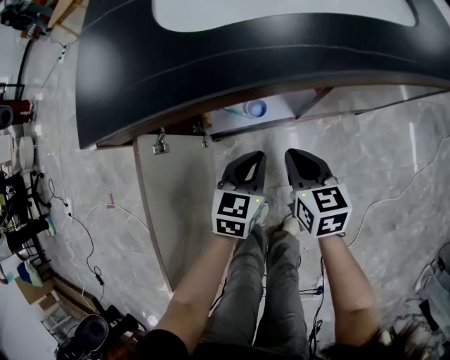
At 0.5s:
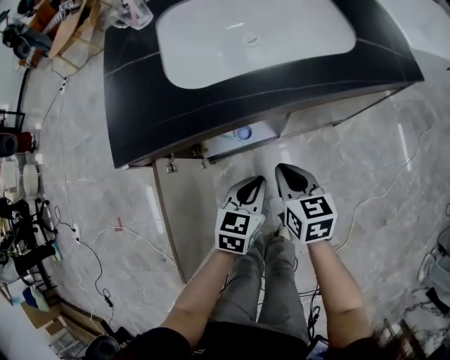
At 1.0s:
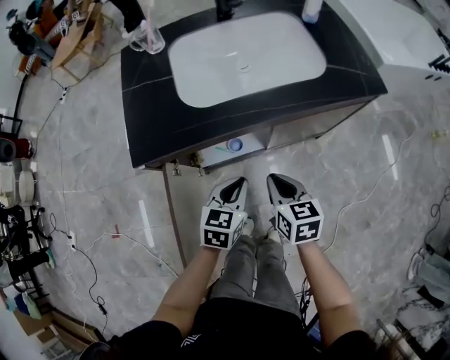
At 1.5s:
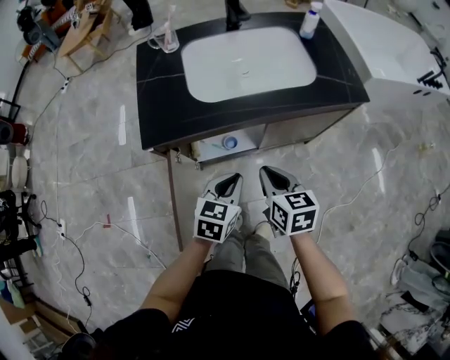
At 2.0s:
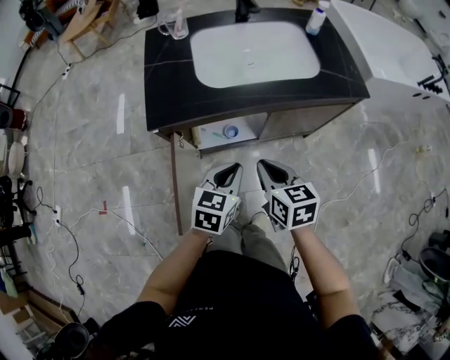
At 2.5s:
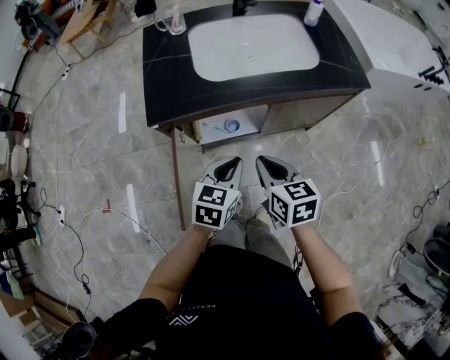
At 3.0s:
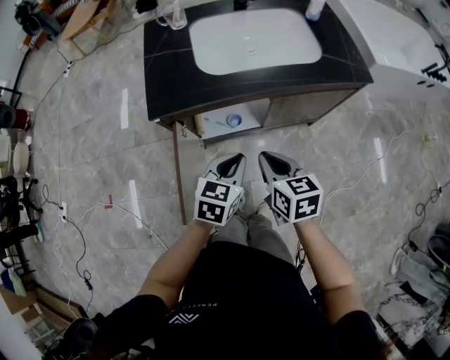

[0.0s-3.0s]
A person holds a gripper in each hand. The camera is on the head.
0.0s to 1.5s: Both grippers move upward, roughly 25 cm.
1.5s to 3.0s: The right gripper shifts by approximately 5 cm.

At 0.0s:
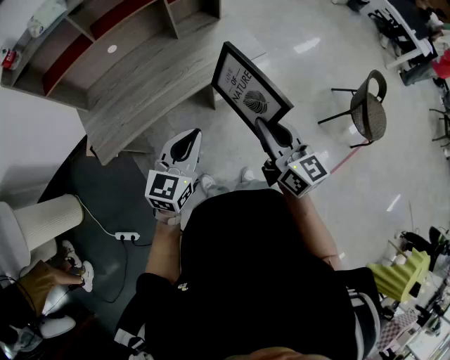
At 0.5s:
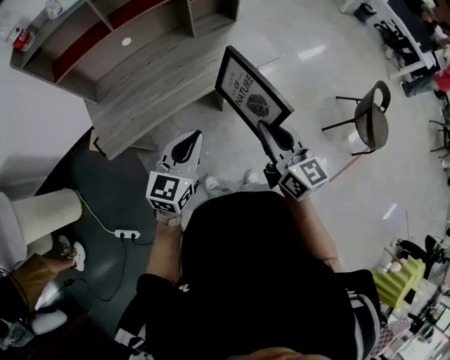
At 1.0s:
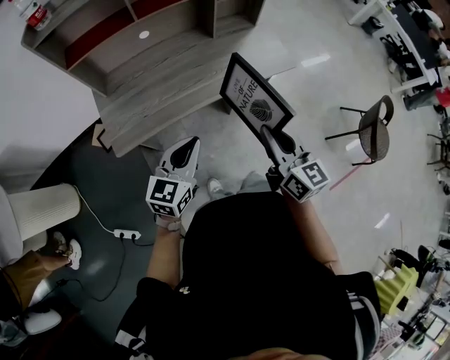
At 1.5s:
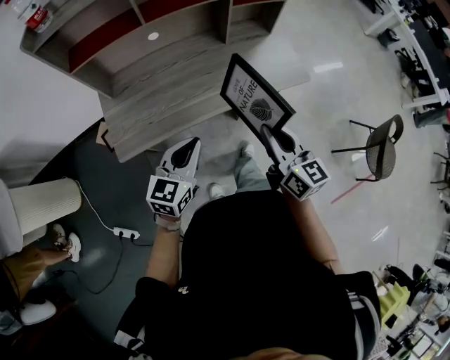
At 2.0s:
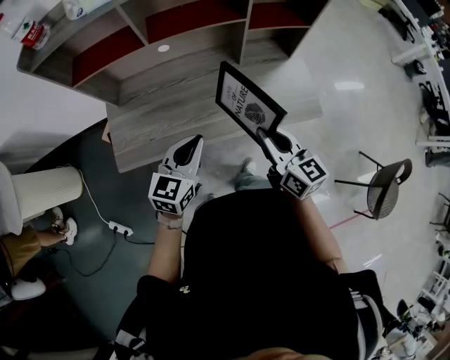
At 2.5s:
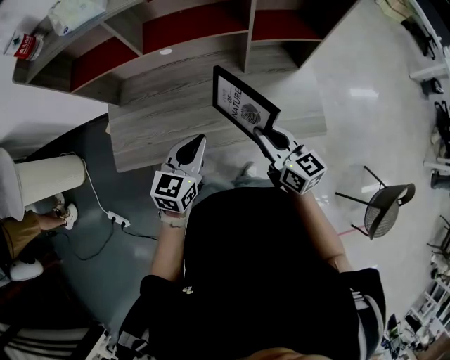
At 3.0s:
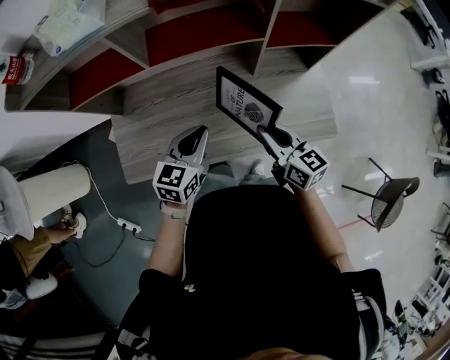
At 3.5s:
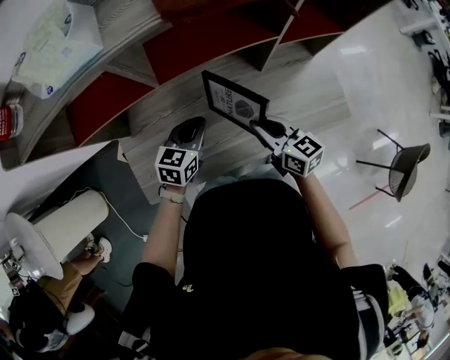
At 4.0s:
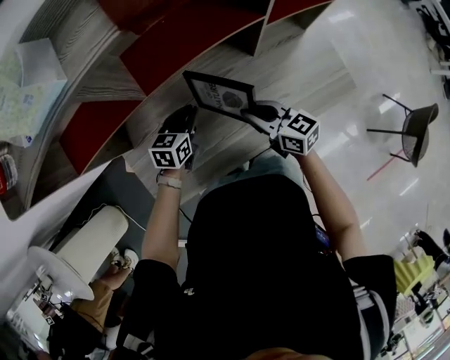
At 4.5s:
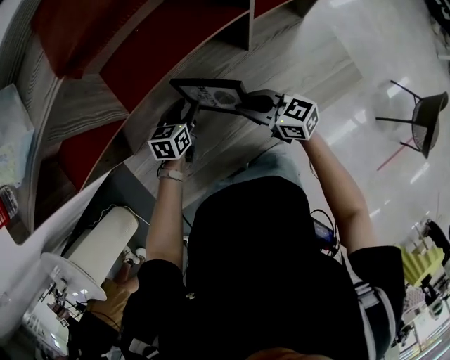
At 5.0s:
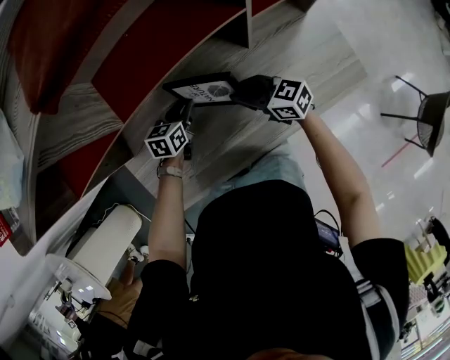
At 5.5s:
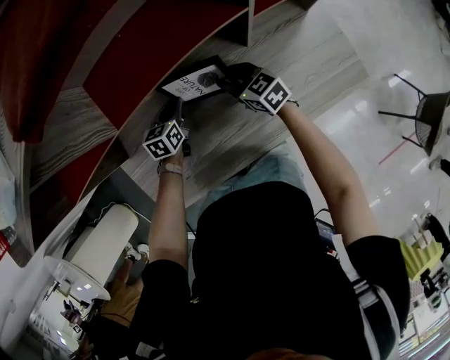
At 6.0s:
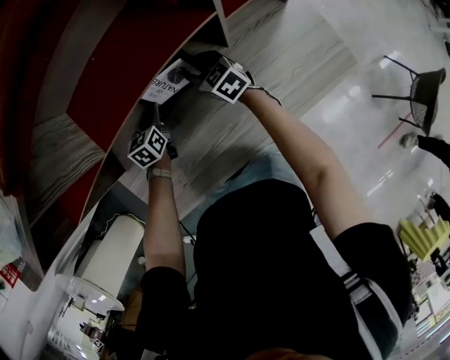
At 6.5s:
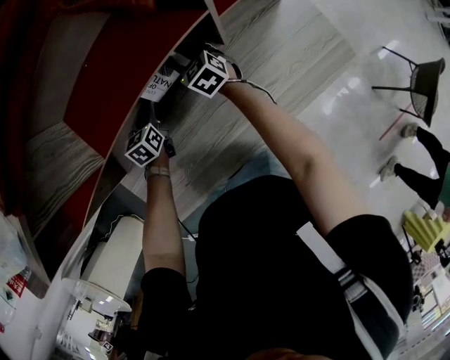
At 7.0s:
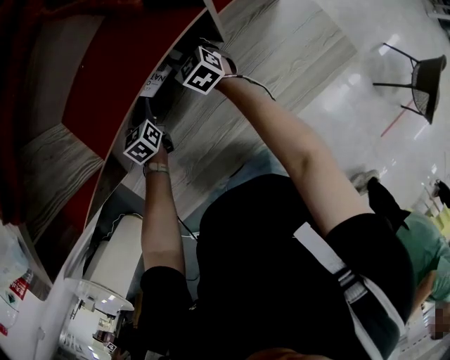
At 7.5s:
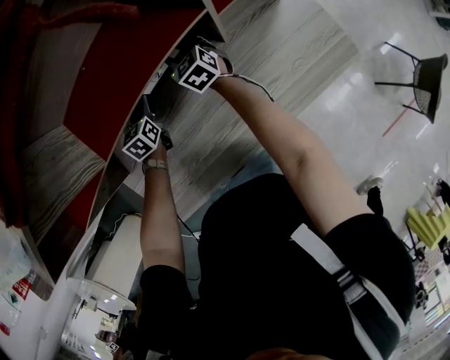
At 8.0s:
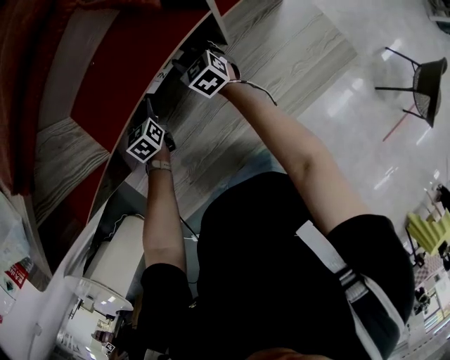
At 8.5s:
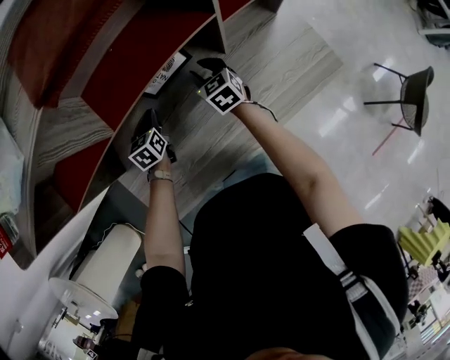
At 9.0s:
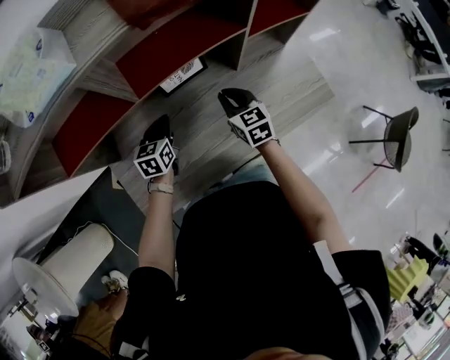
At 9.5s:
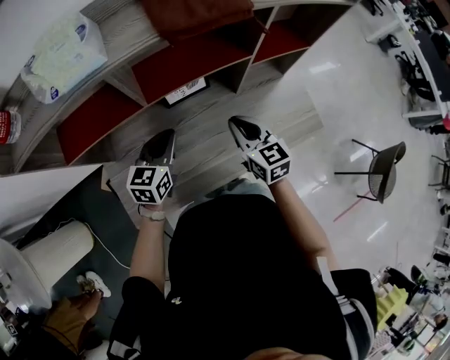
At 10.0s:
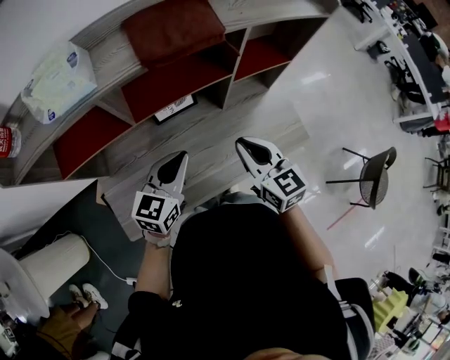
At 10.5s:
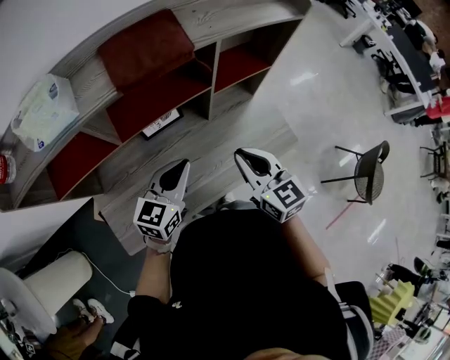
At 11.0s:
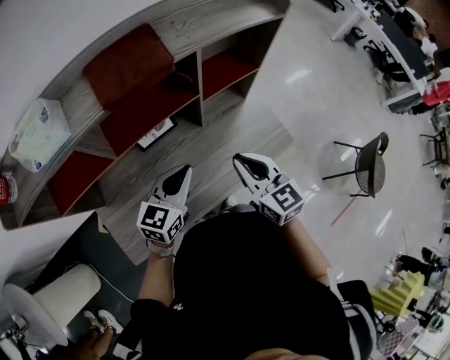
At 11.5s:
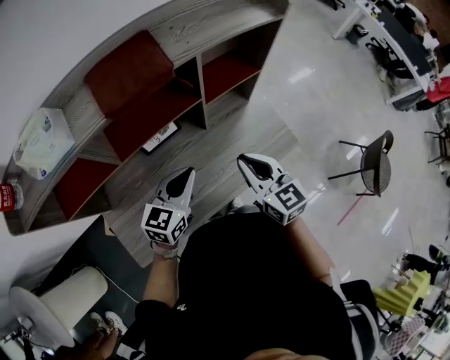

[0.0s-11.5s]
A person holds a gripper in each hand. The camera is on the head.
0.0s to 2.0s: The two grippers go some 25 cm forward and to the left. The right gripper swivels roughly 20 degrees, while the left gripper changes its angle by approximately 20 degrees.
2.0s to 4.0s: The right gripper travels forward, downward and to the left by about 25 cm, while the left gripper goes roughly 30 cm forward and downward, and changes its angle by some 20 degrees.
4.0s to 6.0s: The right gripper shifts some 25 cm forward and downward, turns by approximately 30 degrees, and opens. The left gripper travels downward and forward by about 15 cm, and opens and closes again.
6.0s to 7.5s: The right gripper heads forward, covering roughly 5 cm.
7.5s to 9.5s: The right gripper travels backward and upward by approximately 35 cm, and closes up. Meanwhile the left gripper is displaced upward and backward by approximately 30 cm, and turns by roughly 20 degrees.
9.5s to 11.5s: The grippers both shift to the right and upward by approximately 15 cm.

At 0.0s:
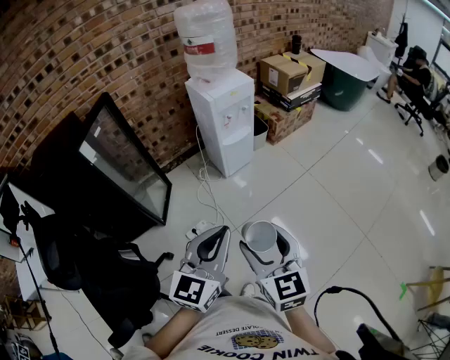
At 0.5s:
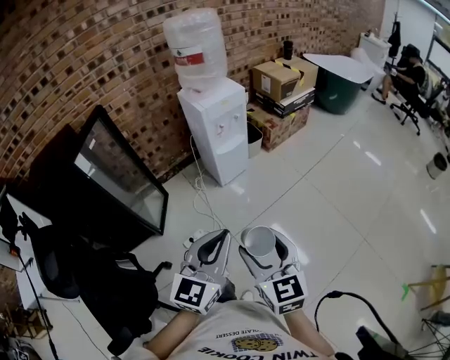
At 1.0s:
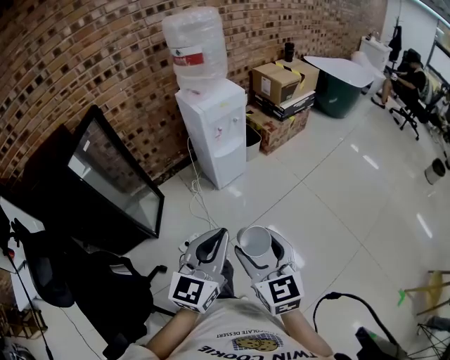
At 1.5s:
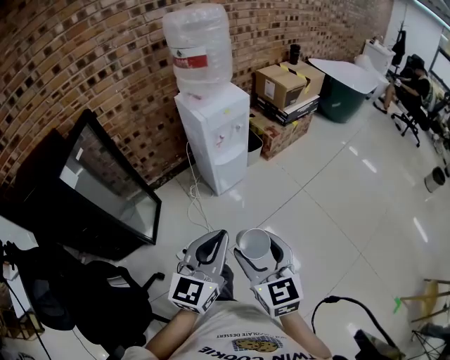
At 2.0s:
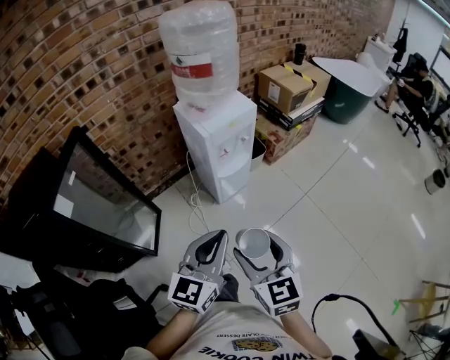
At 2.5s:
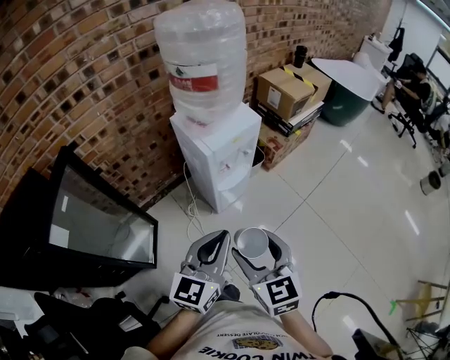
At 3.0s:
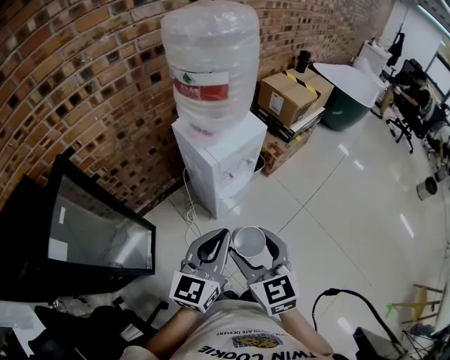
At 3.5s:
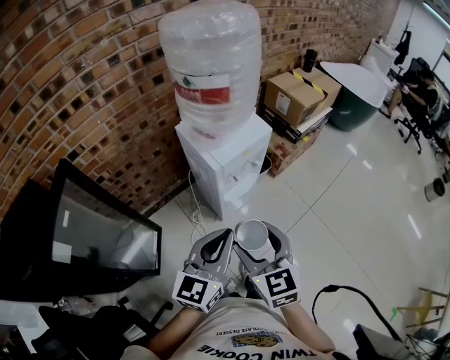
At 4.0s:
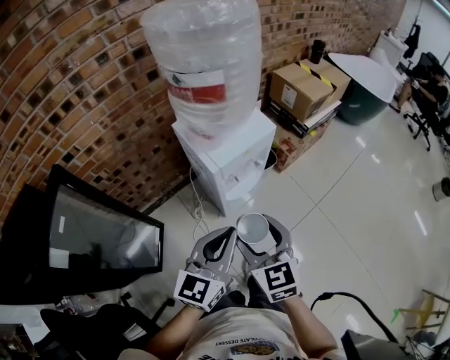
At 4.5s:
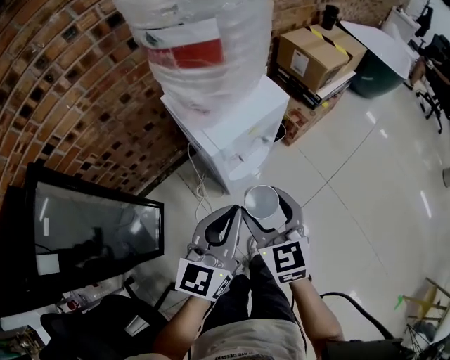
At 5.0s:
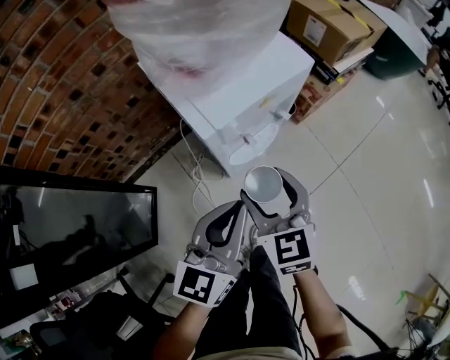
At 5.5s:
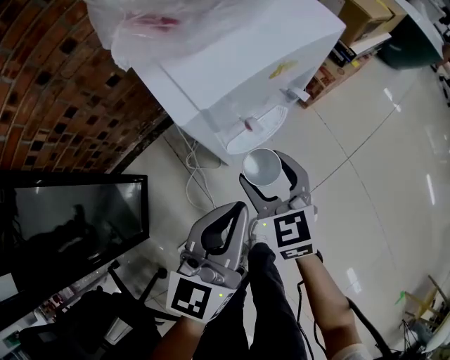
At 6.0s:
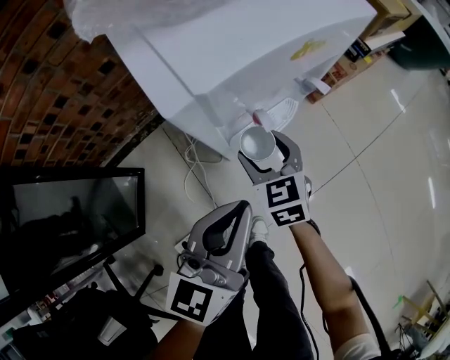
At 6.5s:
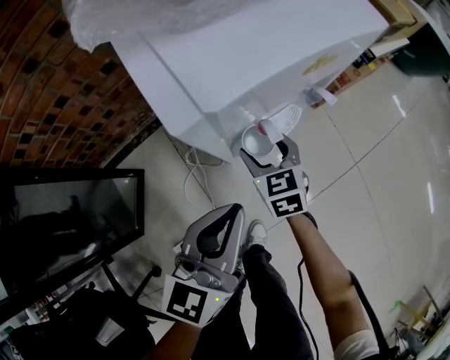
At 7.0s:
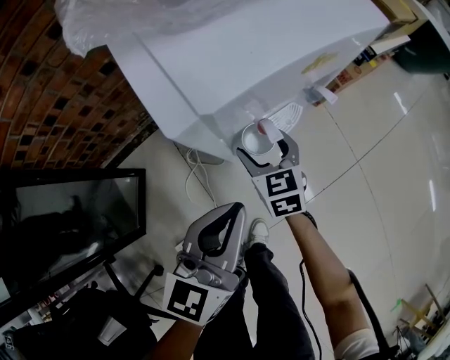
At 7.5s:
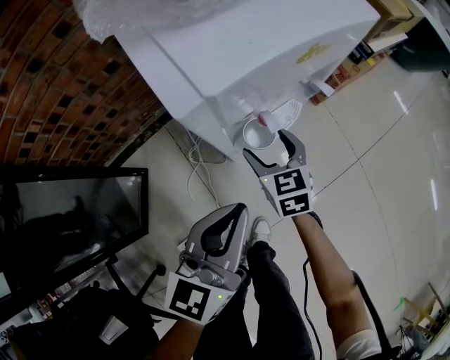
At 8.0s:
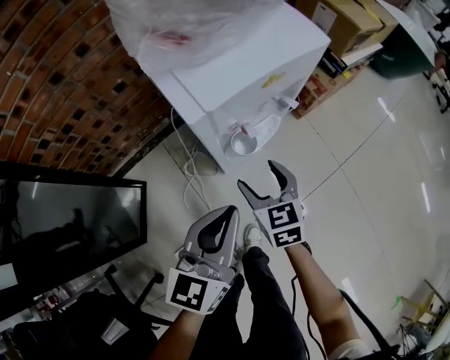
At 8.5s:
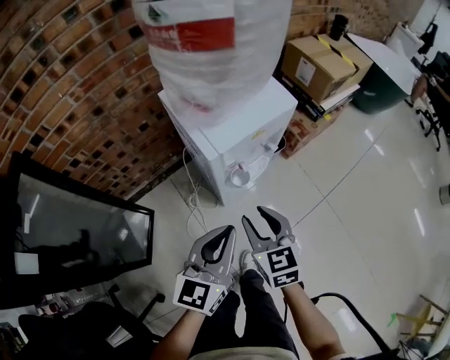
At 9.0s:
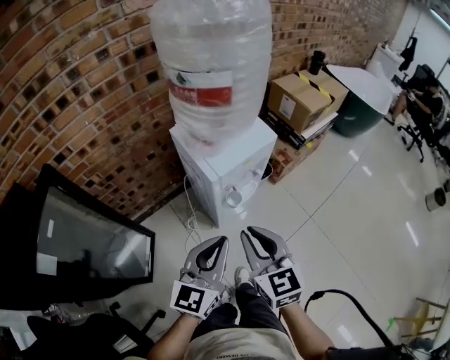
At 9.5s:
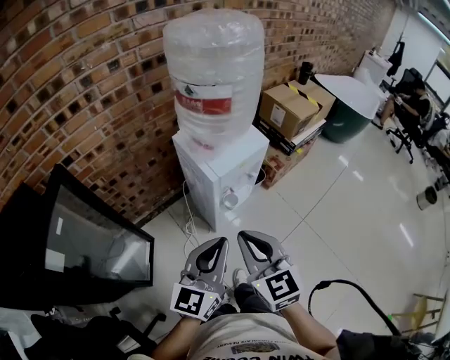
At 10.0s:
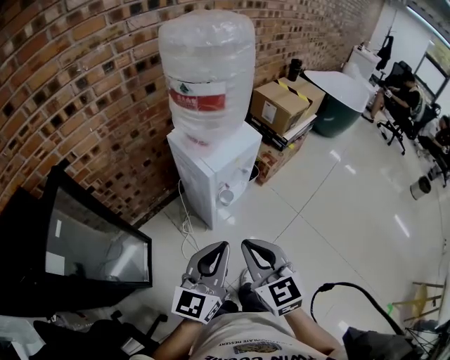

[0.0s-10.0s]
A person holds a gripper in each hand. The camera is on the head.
0.0s to 2.0s: The grippers both shift forward by some 25 cm.
2.0s to 4.0s: Both grippers travel together forward, some 20 cm.
4.0s to 6.0s: The right gripper moves downward and forward, about 40 cm. The left gripper shifts about 30 cm downward and forward.
6.0s to 8.0s: The right gripper moves backward and upward, about 10 cm, while the left gripper shifts by about 5 cm.
8.0s to 10.0s: The right gripper is displaced upward and backward by roughly 40 cm, and closes. The left gripper heads upward and backward, covering about 25 cm.

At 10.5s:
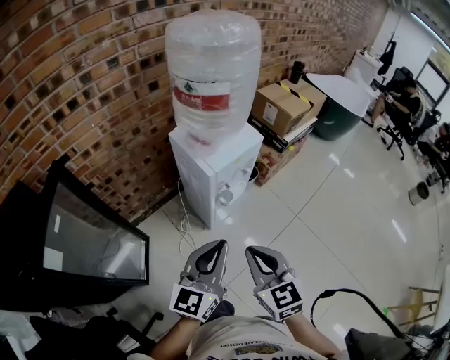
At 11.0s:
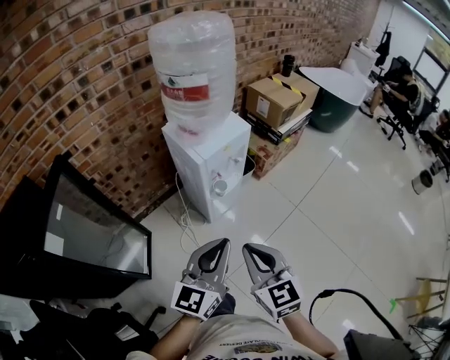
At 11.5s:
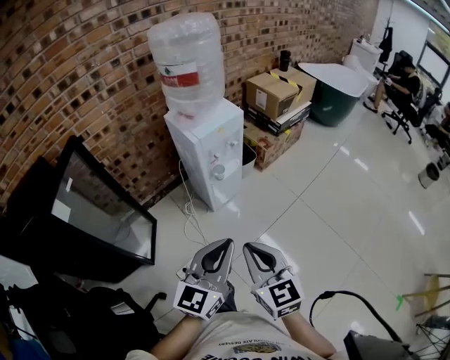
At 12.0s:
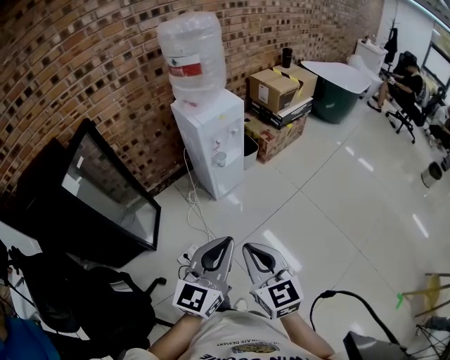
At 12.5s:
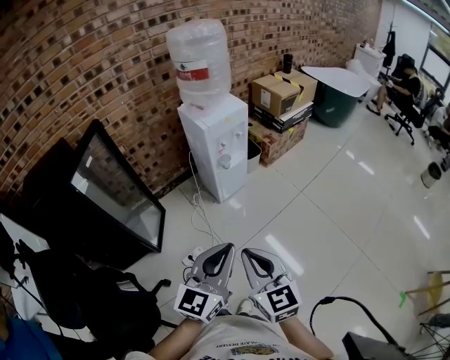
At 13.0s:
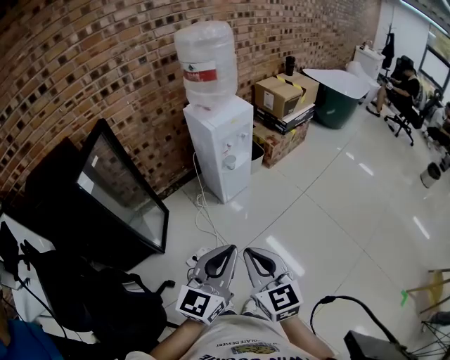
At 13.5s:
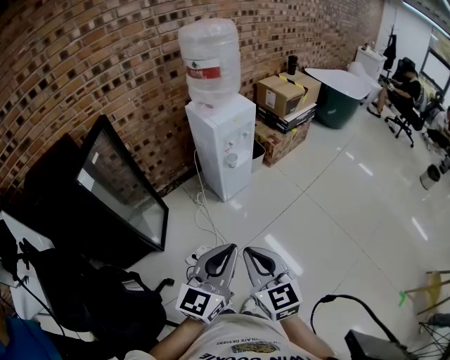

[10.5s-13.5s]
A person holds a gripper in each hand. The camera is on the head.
10.5s to 12.0s: The right gripper is displaced backward by roughly 25 cm. The left gripper heads backward and to the right, covering roughly 30 cm.
12.0s to 13.5s: The left gripper shifts approximately 10 cm to the left and backward. Meanwhile the right gripper shifts about 5 cm to the left.
